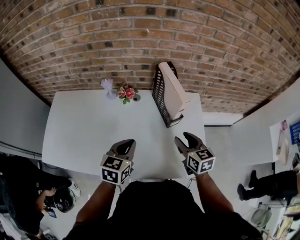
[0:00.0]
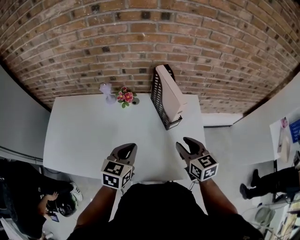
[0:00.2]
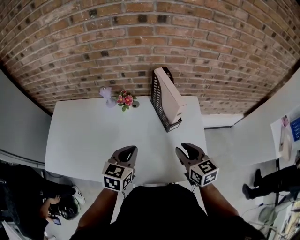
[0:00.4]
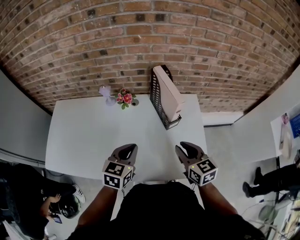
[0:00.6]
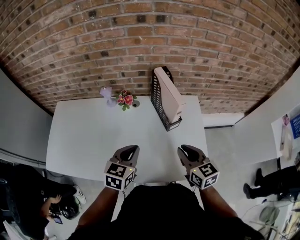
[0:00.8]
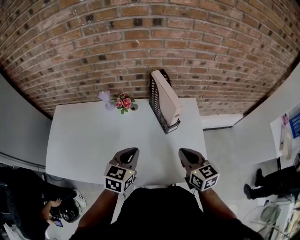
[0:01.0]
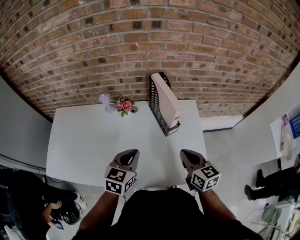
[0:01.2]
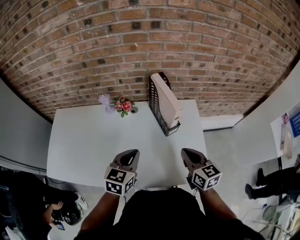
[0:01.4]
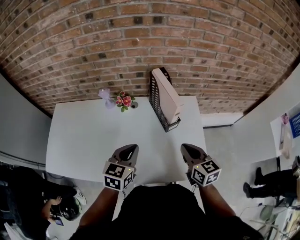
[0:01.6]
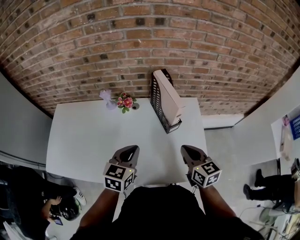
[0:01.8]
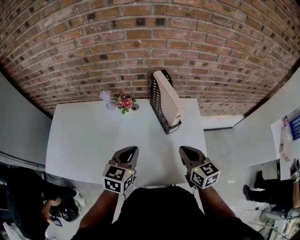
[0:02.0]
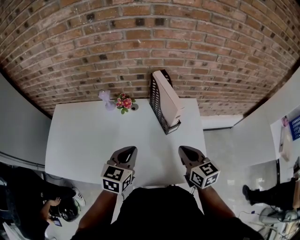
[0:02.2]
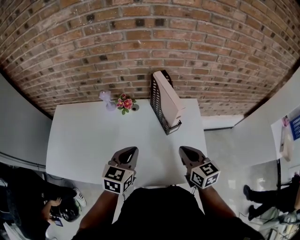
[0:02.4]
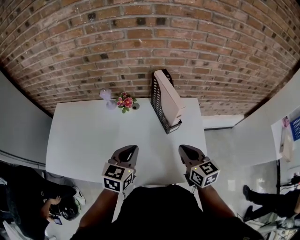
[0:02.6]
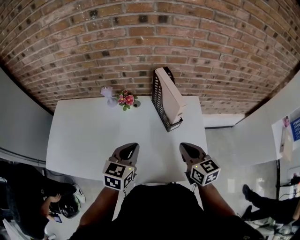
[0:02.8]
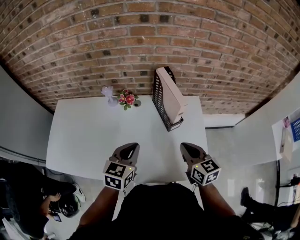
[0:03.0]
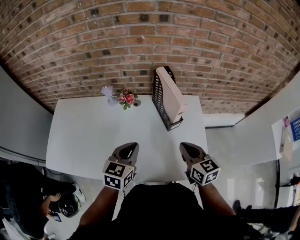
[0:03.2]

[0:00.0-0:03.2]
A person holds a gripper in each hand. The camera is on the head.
0:00.0 to 0:01.6: The right gripper changes place by approximately 5 cm, and closes its fingers.
0:01.6 to 0:03.2: The grippers make only small movements.

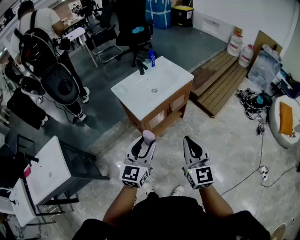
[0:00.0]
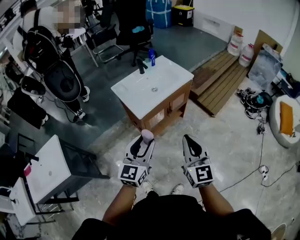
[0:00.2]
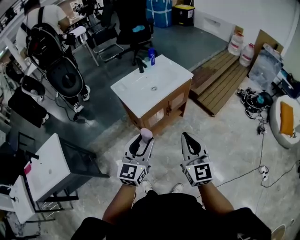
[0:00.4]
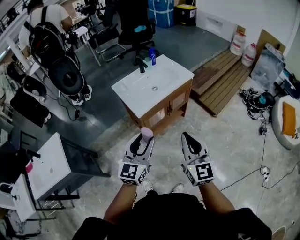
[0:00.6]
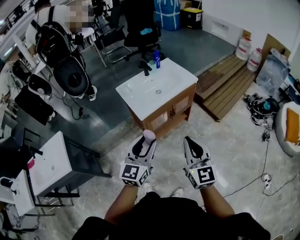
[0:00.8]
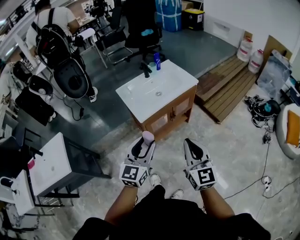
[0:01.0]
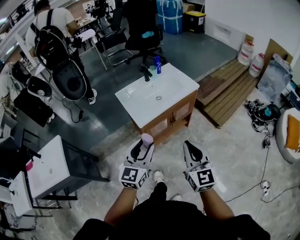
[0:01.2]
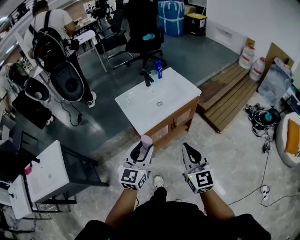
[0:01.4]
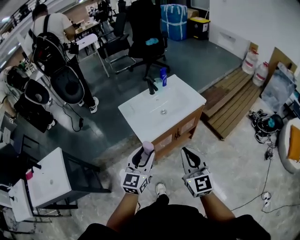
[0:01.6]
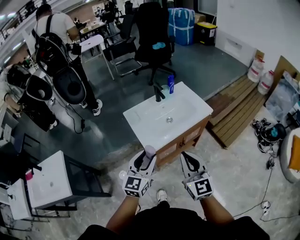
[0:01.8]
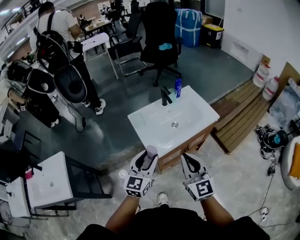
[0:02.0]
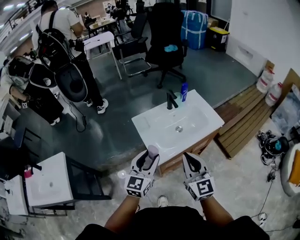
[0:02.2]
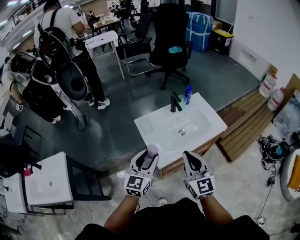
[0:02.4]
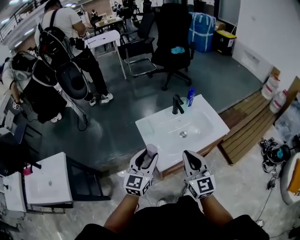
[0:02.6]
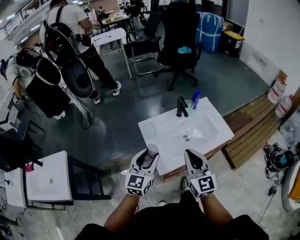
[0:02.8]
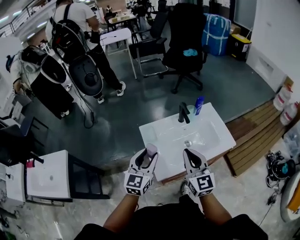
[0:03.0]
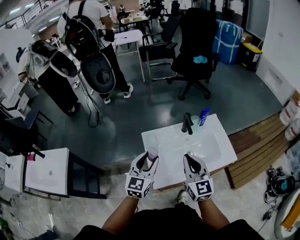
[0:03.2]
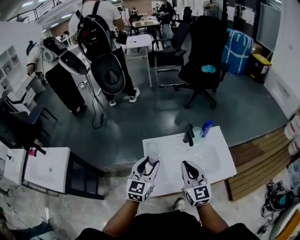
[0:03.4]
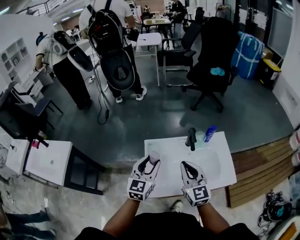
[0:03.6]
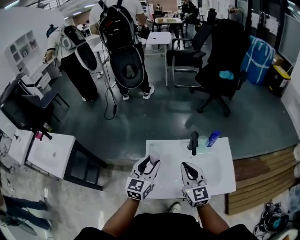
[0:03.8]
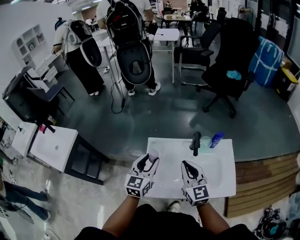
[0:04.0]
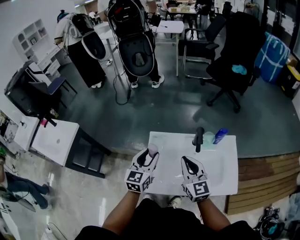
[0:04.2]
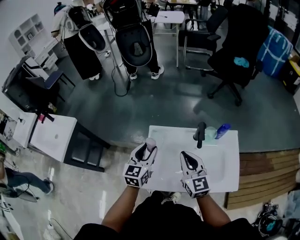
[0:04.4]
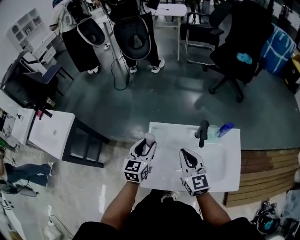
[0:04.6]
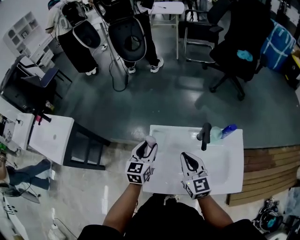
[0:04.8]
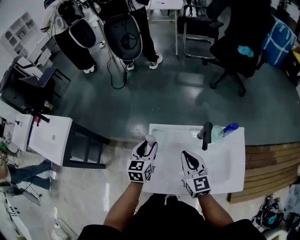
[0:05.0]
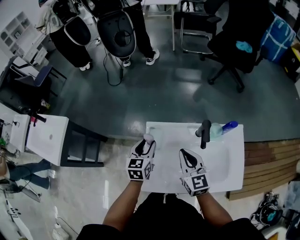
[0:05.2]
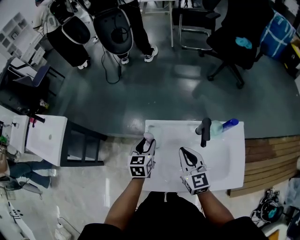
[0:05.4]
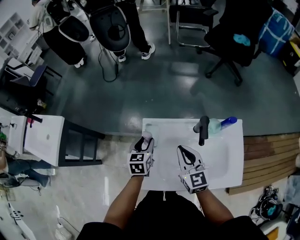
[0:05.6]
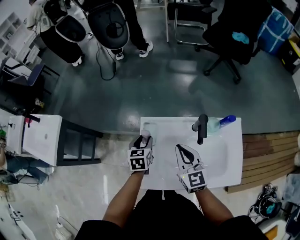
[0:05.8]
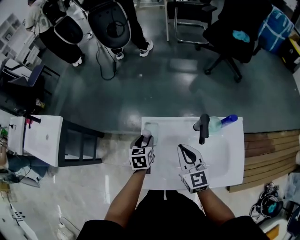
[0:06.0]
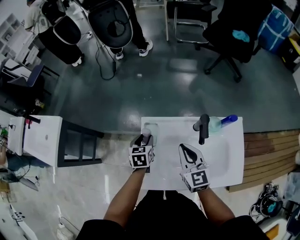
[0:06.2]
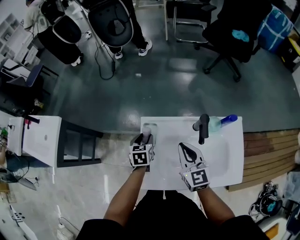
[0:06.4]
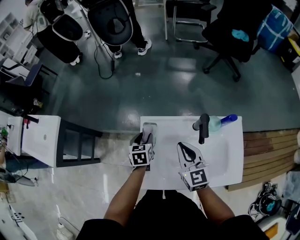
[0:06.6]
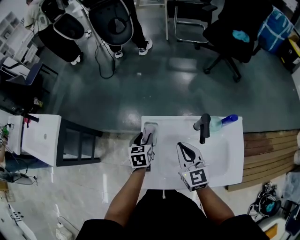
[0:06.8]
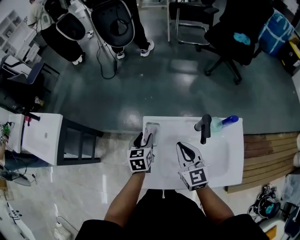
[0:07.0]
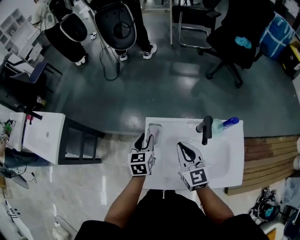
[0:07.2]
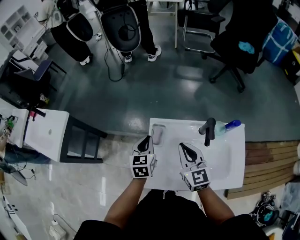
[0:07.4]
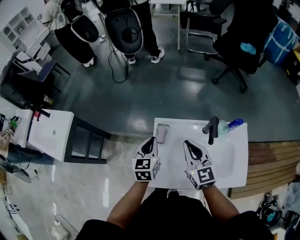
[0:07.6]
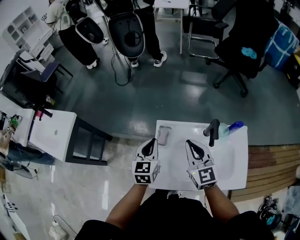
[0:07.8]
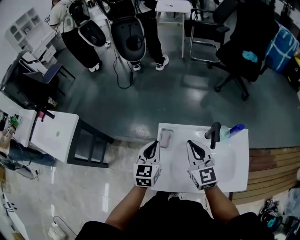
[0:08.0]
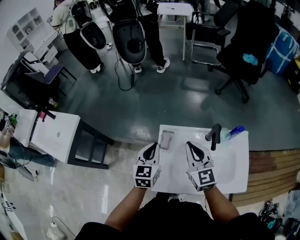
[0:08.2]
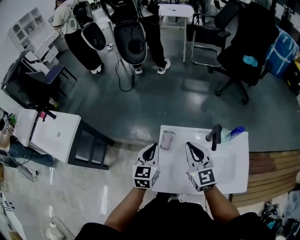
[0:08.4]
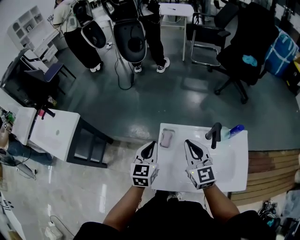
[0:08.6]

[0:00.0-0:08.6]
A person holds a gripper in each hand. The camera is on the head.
0:00.0 to 0:01.4: Both grippers move forward, some 10 cm.
0:01.4 to 0:02.8: Both grippers travel together forward and to the left, approximately 25 cm.
0:02.8 to 0:04.4: The right gripper moves roughly 20 cm, and turns by some 30 degrees. Meanwhile the left gripper changes place by approximately 15 cm, and swivels about 30 degrees.
0:04.4 to 0:05.8: The right gripper goes roughly 5 cm downward. Meanwhile the left gripper shifts roughly 15 cm downward and forward, and turns by approximately 30 degrees.
0:05.8 to 0:07.2: The left gripper travels upward by approximately 5 cm.
0:07.2 to 0:08.6: The two grippers go some 10 cm upward. The left gripper closes up.

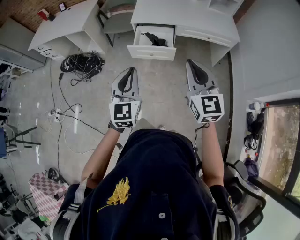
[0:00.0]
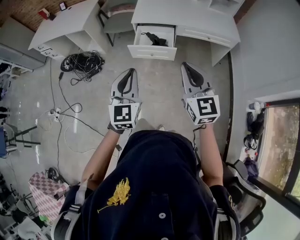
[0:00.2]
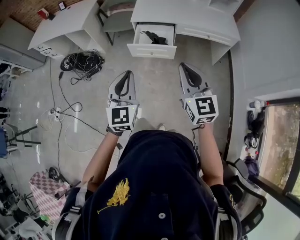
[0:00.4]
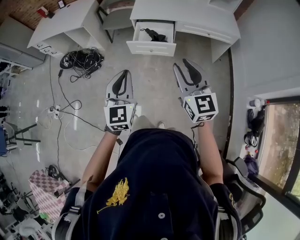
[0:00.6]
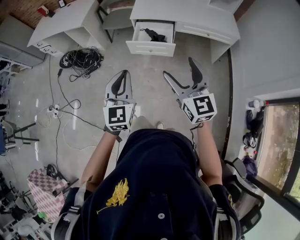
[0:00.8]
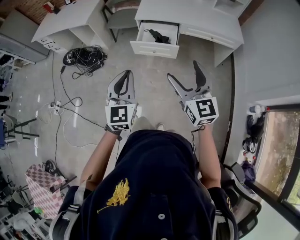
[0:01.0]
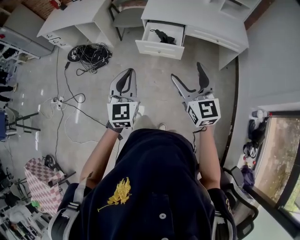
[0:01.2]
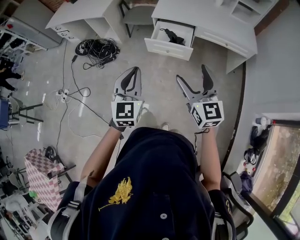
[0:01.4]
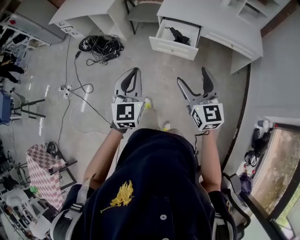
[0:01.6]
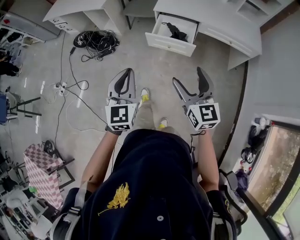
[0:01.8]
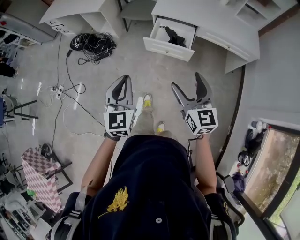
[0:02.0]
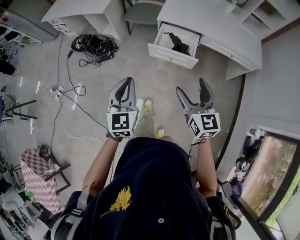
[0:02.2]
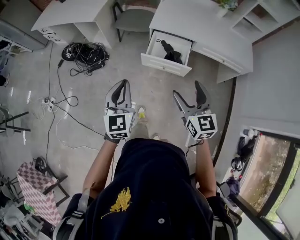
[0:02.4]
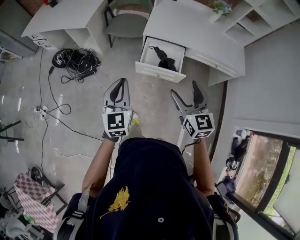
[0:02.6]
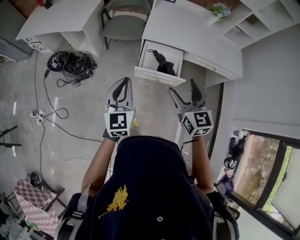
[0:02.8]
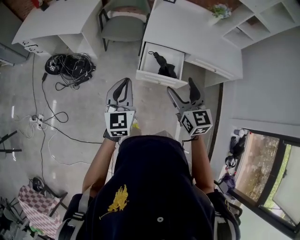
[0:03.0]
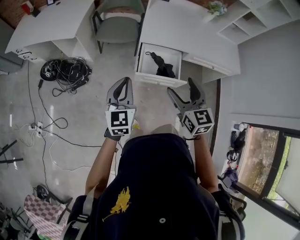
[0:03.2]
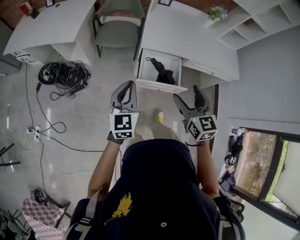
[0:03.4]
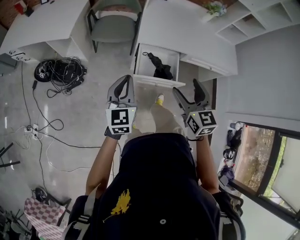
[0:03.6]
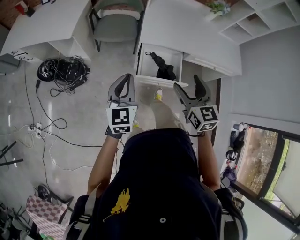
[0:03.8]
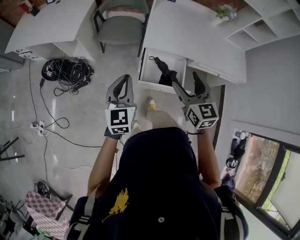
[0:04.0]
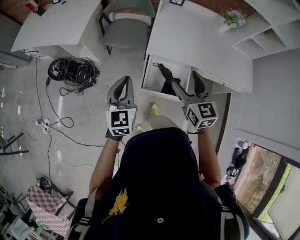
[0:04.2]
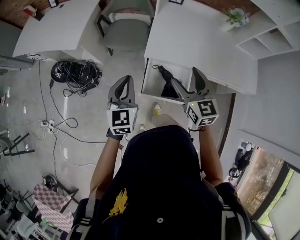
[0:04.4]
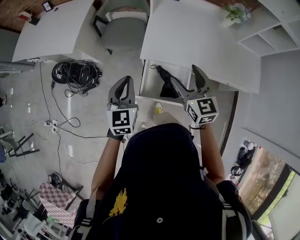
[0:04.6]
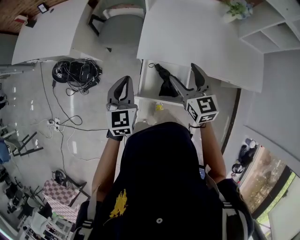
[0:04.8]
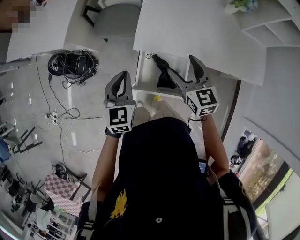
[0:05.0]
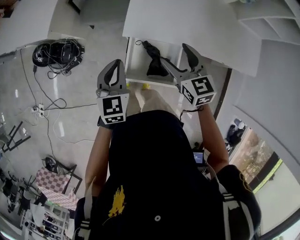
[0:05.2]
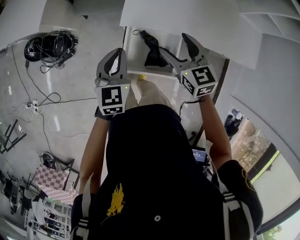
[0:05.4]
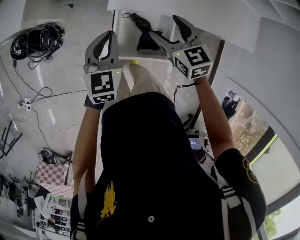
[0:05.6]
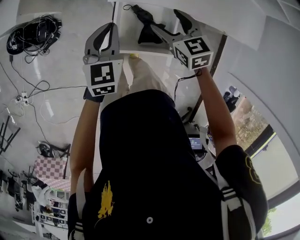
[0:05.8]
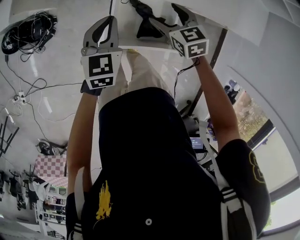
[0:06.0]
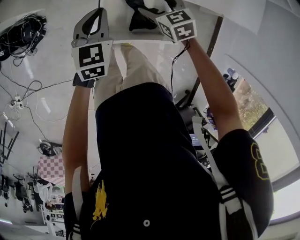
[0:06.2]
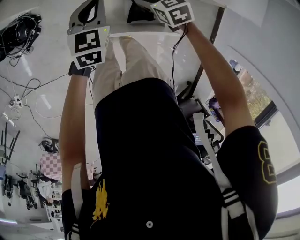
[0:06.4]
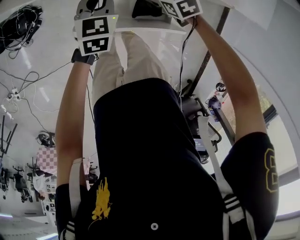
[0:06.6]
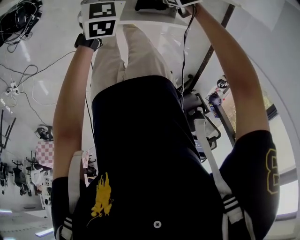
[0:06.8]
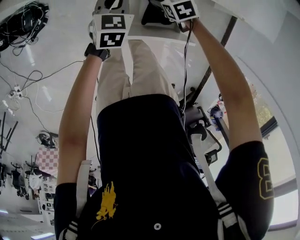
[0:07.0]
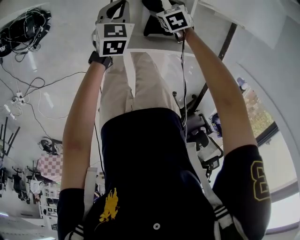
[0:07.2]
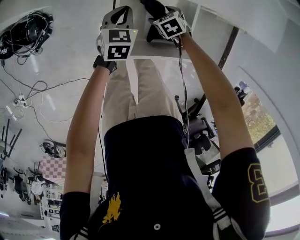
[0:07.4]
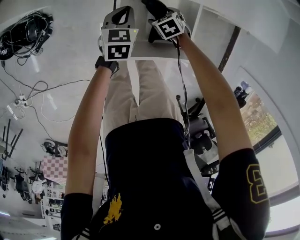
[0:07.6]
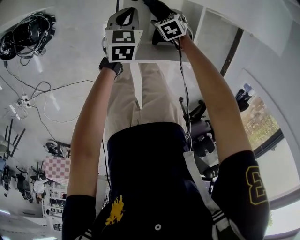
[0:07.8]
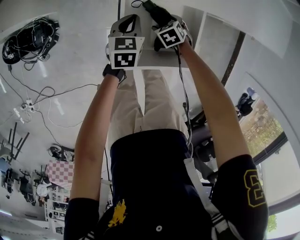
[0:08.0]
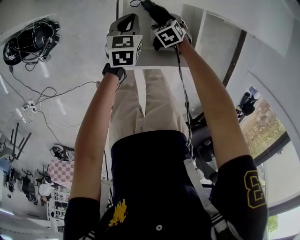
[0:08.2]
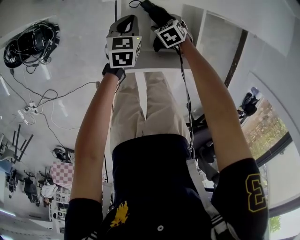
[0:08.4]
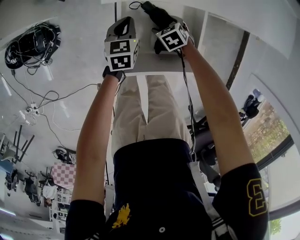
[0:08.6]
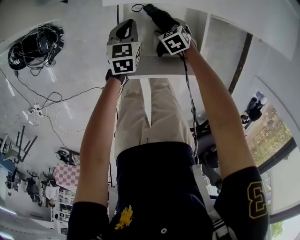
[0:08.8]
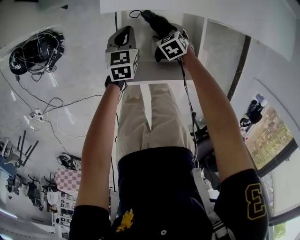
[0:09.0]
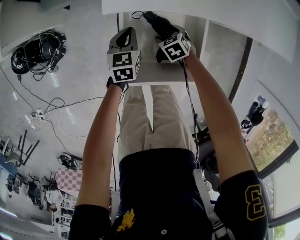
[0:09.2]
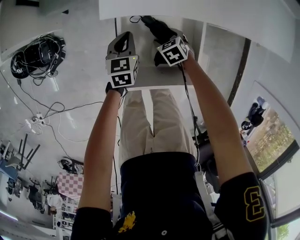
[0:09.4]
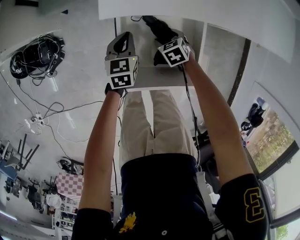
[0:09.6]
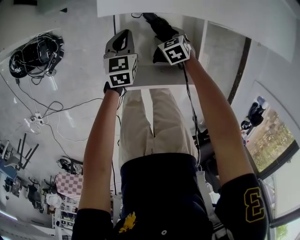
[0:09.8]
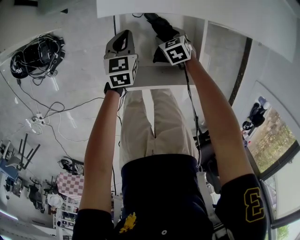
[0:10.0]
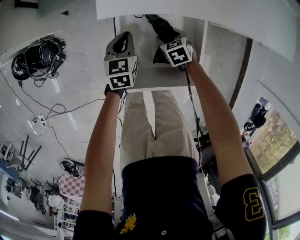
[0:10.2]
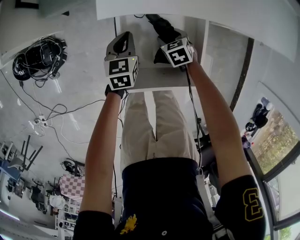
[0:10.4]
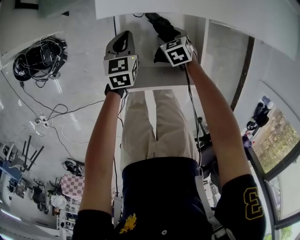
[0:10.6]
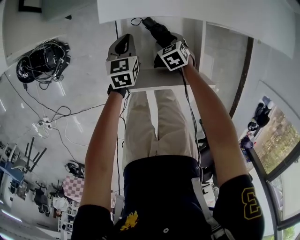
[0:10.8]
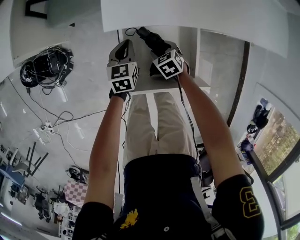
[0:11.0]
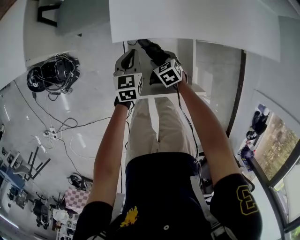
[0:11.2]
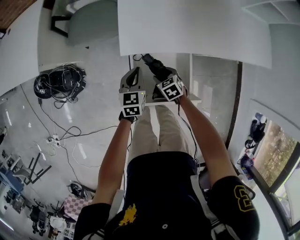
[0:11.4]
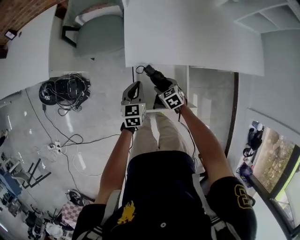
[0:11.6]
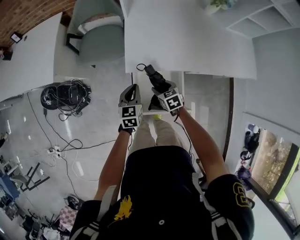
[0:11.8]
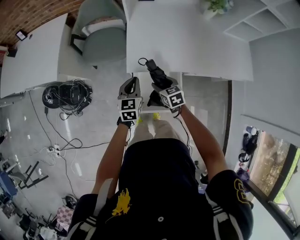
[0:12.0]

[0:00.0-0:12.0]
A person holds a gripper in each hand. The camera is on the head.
0:00.0 to 0:01.6: The left gripper shifts by roughly 5 cm. Meanwhile the right gripper goes approximately 5 cm downward, and opens its fingers.
0:01.6 to 0:03.0: Both grippers move forward, roughly 30 cm.
0:03.0 to 0:04.4: Both grippers move forward, some 25 cm.
0:04.4 to 0:06.0: The right gripper travels downward by about 25 cm, and changes its angle by approximately 30 degrees. The left gripper is displaced downward and to the right by about 20 cm, and swivels about 20 degrees.
0:06.0 to 0:07.6: Both grippers travel together downward, roughly 25 cm. The right gripper turns by approximately 30 degrees.
0:07.6 to 0:10.4: The grippers stay close to where they were, moving slightly.
0:10.4 to 0:12.0: Both grippers travel together upward, approximately 30 cm.
